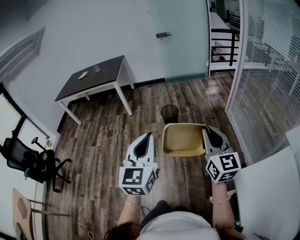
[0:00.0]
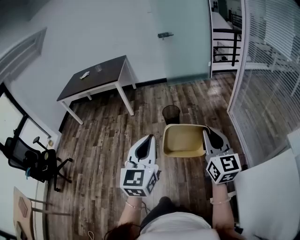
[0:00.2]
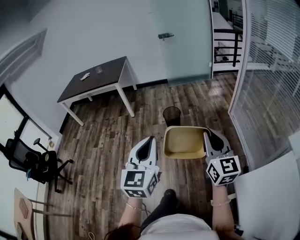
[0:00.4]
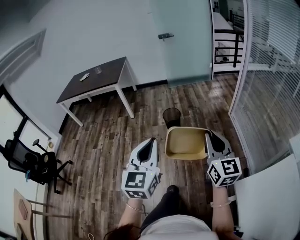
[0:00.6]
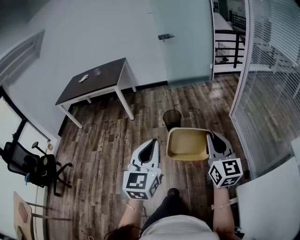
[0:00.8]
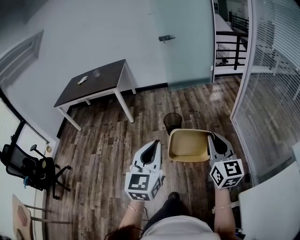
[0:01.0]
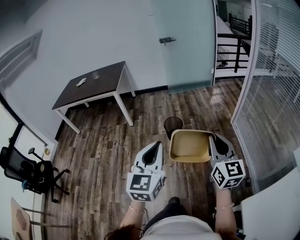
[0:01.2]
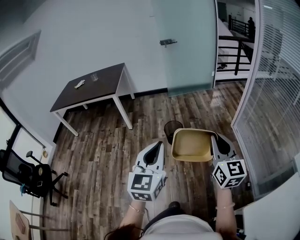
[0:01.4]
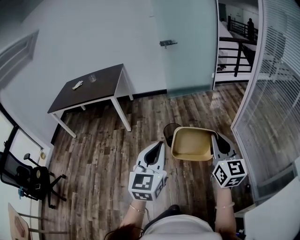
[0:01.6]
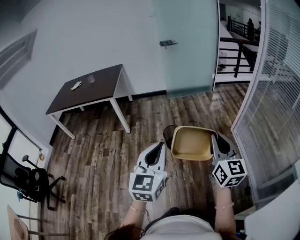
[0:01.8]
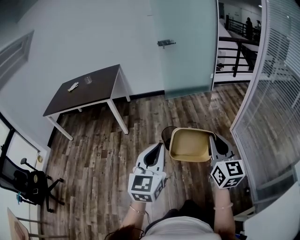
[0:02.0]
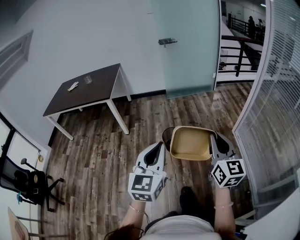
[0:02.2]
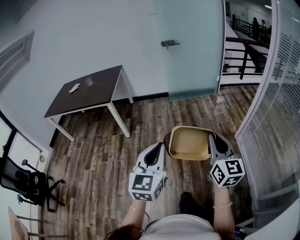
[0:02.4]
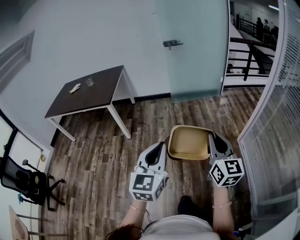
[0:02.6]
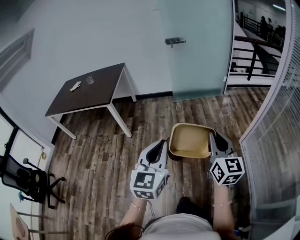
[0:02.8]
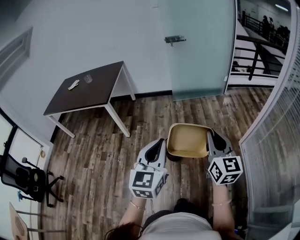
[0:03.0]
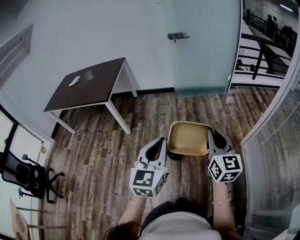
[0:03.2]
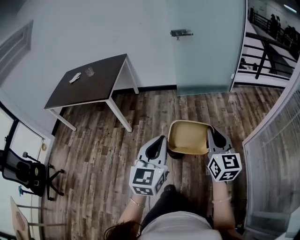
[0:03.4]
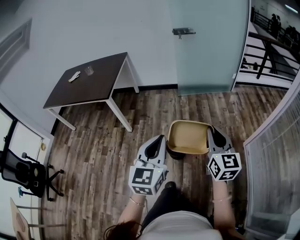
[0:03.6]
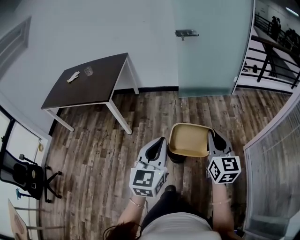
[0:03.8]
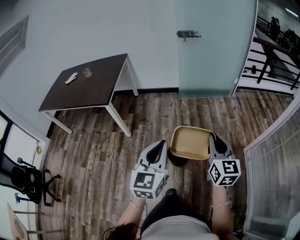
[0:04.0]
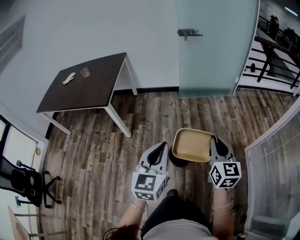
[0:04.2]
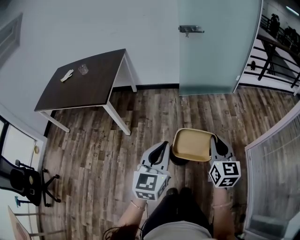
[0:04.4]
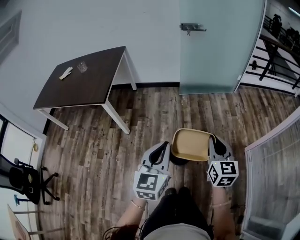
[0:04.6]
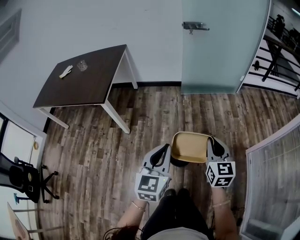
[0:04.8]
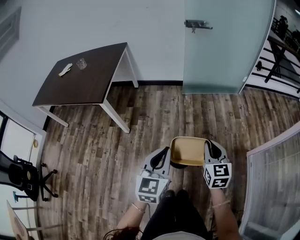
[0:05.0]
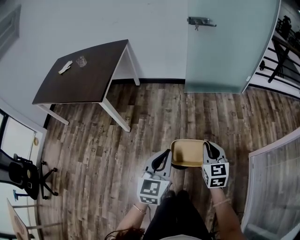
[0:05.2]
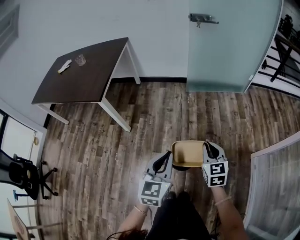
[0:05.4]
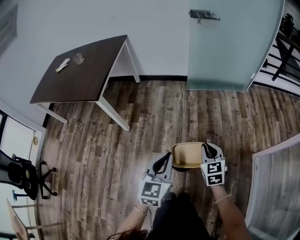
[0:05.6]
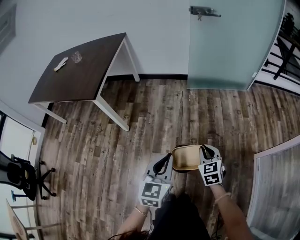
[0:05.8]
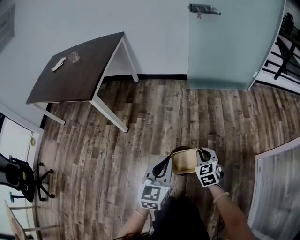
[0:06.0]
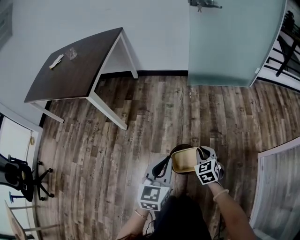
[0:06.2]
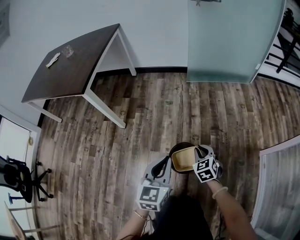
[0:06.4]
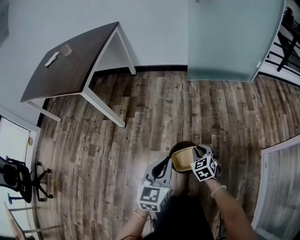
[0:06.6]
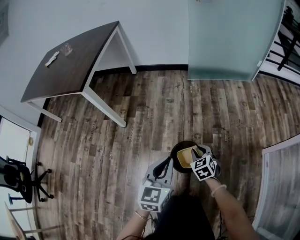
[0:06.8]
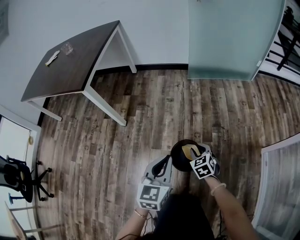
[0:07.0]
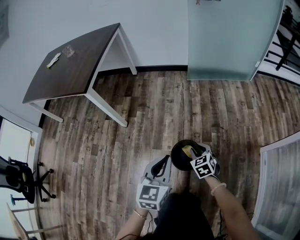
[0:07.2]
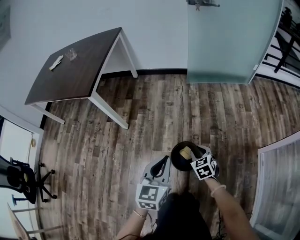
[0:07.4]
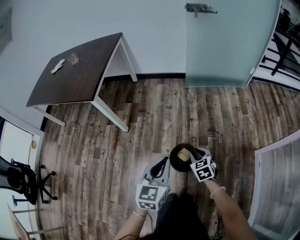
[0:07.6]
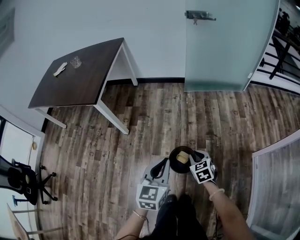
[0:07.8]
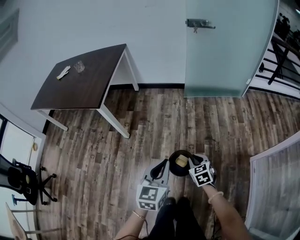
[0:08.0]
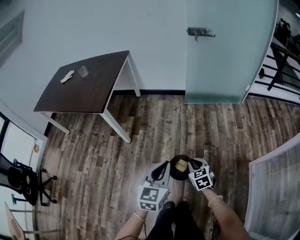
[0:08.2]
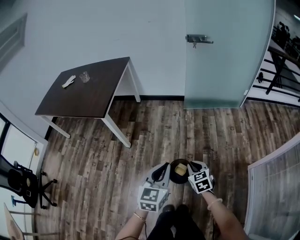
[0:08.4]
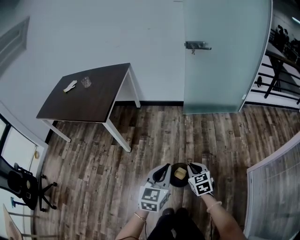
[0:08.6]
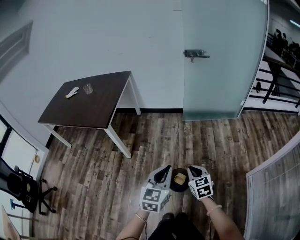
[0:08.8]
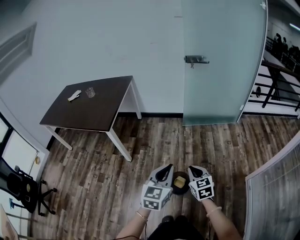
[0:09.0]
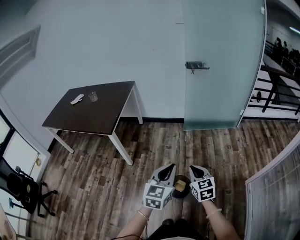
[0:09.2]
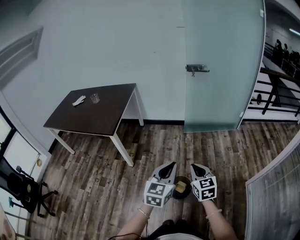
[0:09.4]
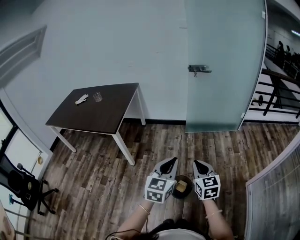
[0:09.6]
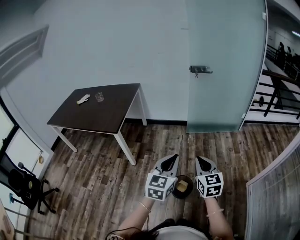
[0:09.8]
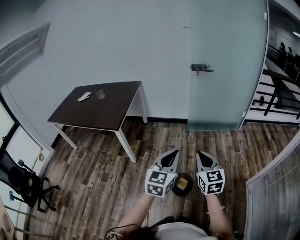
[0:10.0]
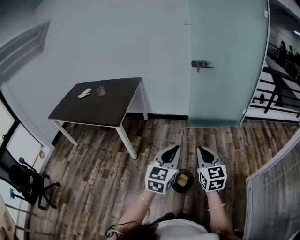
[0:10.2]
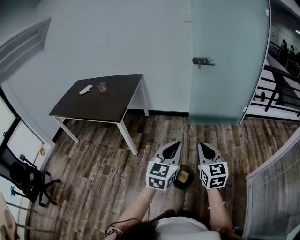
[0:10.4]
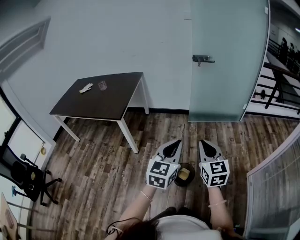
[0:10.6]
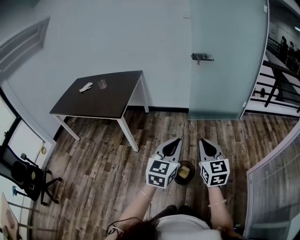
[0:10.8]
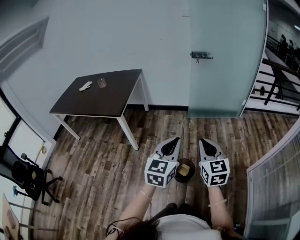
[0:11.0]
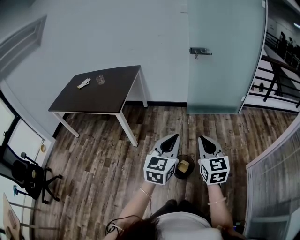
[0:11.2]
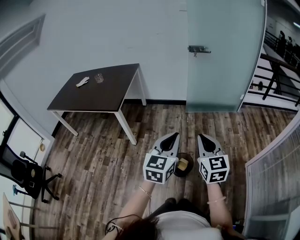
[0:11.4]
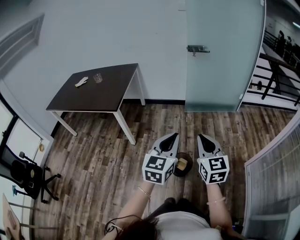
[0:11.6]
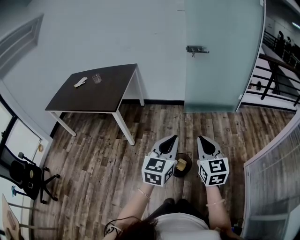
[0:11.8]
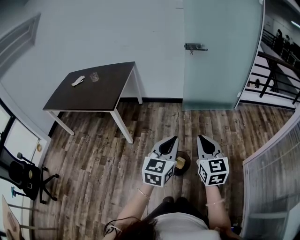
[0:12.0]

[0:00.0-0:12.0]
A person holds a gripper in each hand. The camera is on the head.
0:00.0 to 0:01.6: The grippers both shift forward by about 30 cm.
0:01.6 to 0:03.0: Both grippers are carried forward, approximately 40 cm.
0:03.0 to 0:04.4: The grippers both shift forward and to the left by roughly 30 cm.
0:04.4 to 0:06.0: Both grippers travel together downward and forward, approximately 40 cm. The right gripper turns by some 40 degrees.
0:06.0 to 0:07.6: The right gripper goes downward and returns, some 15 cm each way. Meanwhile the left gripper travels downward and back again, some 15 cm each way.
0:07.6 to 0:09.0: Both grippers travel together upward, about 25 cm. The right gripper closes its fingers.
0:09.0 to 0:10.4: The left gripper goes roughly 10 cm upward and backward. Meanwhile the right gripper is displaced upward and backward by some 20 cm, and rotates roughly 20 degrees.
0:10.4 to 0:12.0: The right gripper changes place by approximately 5 cm.

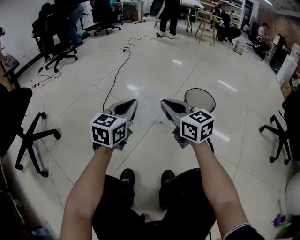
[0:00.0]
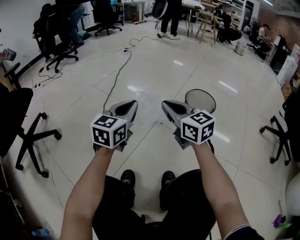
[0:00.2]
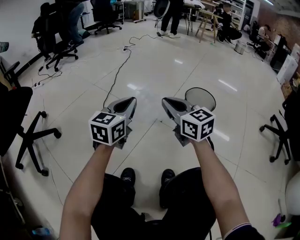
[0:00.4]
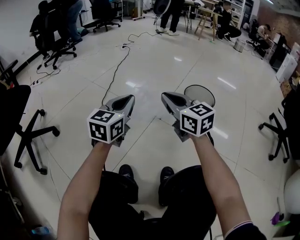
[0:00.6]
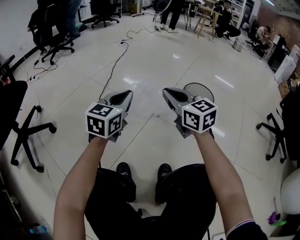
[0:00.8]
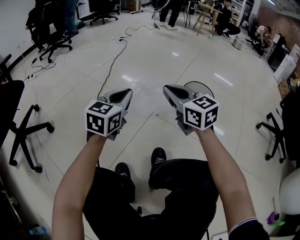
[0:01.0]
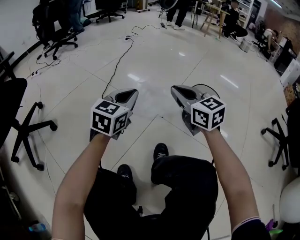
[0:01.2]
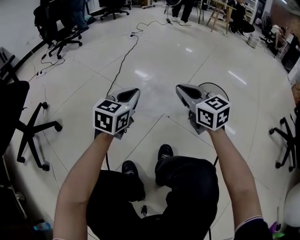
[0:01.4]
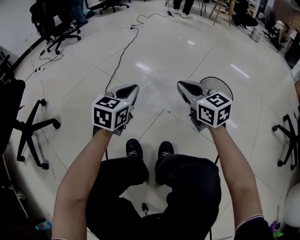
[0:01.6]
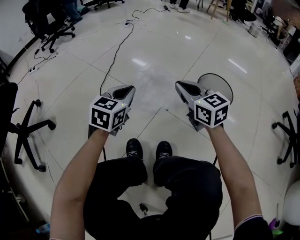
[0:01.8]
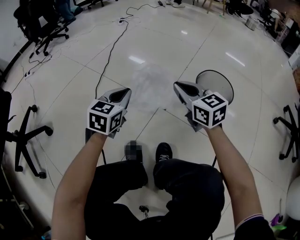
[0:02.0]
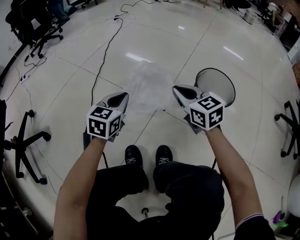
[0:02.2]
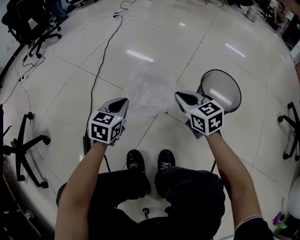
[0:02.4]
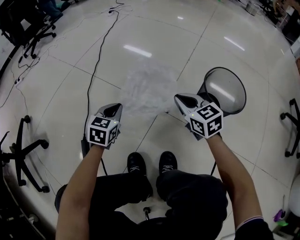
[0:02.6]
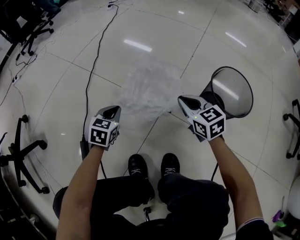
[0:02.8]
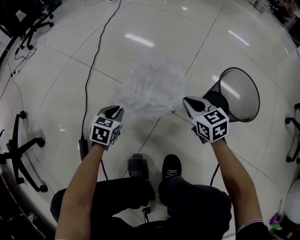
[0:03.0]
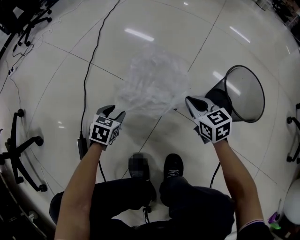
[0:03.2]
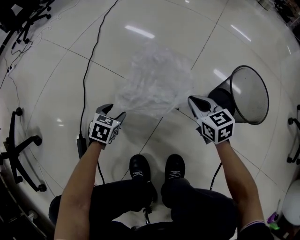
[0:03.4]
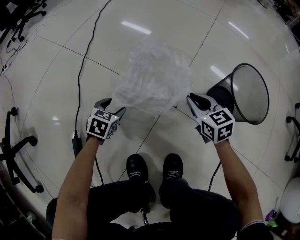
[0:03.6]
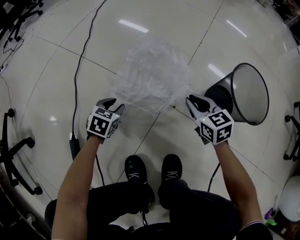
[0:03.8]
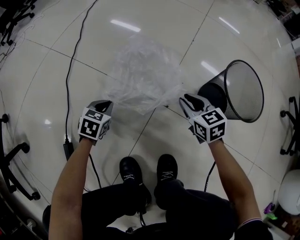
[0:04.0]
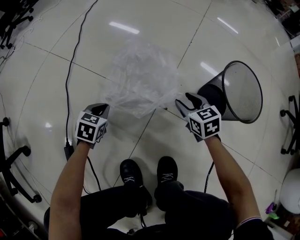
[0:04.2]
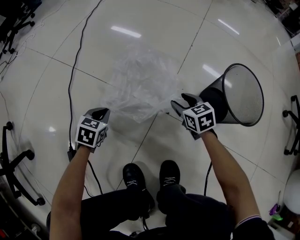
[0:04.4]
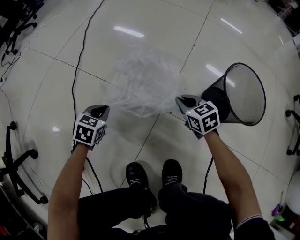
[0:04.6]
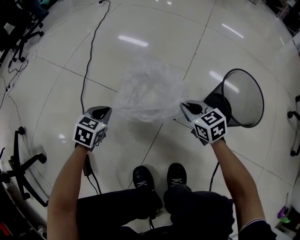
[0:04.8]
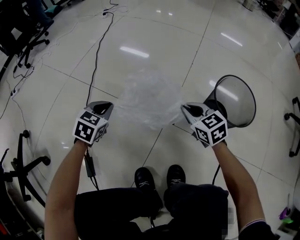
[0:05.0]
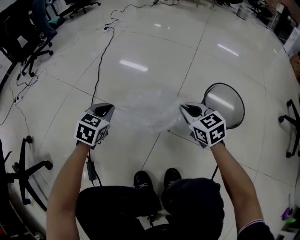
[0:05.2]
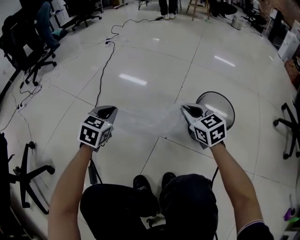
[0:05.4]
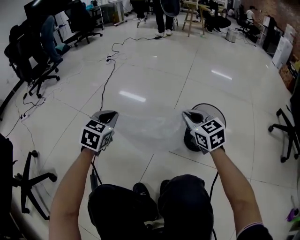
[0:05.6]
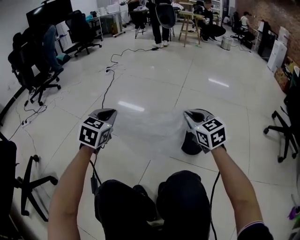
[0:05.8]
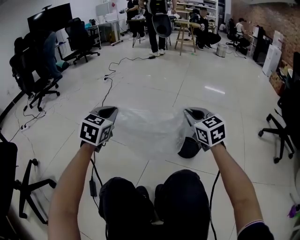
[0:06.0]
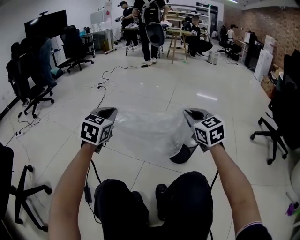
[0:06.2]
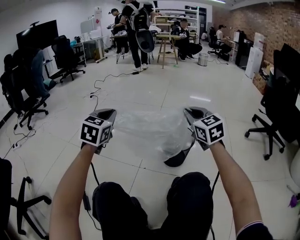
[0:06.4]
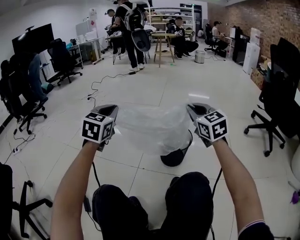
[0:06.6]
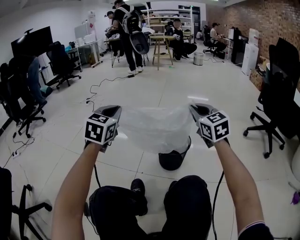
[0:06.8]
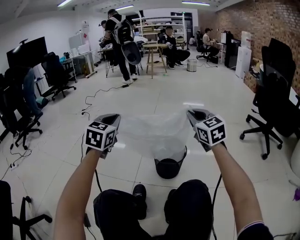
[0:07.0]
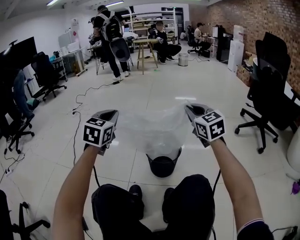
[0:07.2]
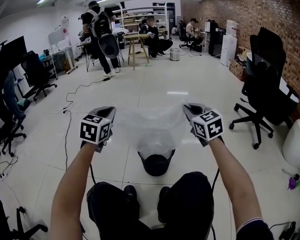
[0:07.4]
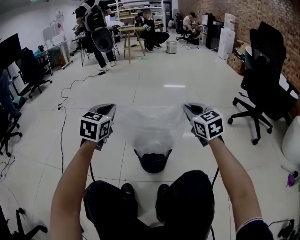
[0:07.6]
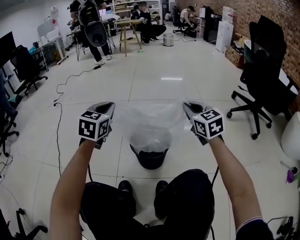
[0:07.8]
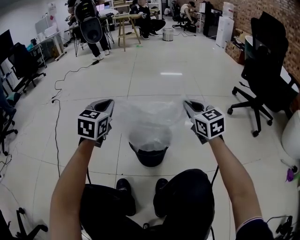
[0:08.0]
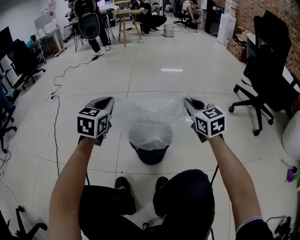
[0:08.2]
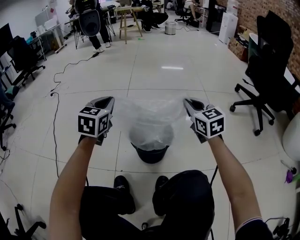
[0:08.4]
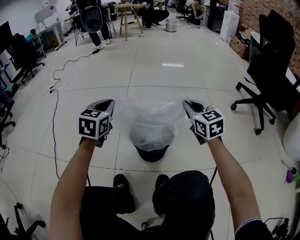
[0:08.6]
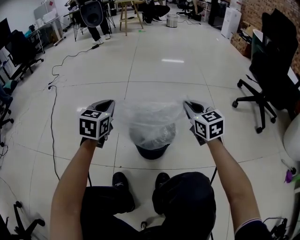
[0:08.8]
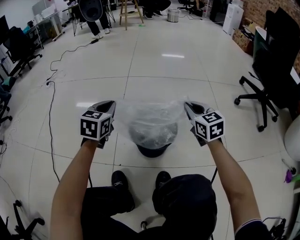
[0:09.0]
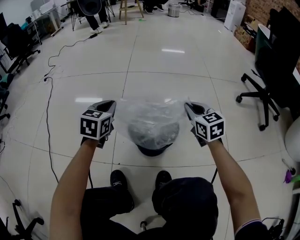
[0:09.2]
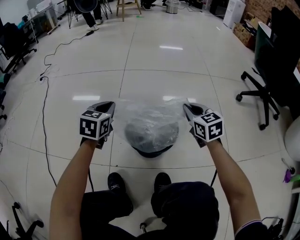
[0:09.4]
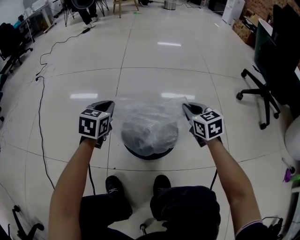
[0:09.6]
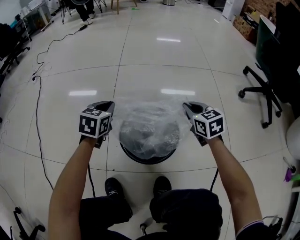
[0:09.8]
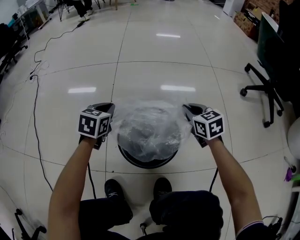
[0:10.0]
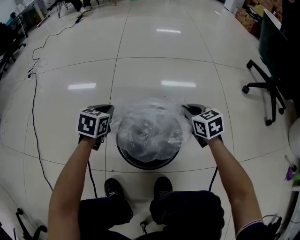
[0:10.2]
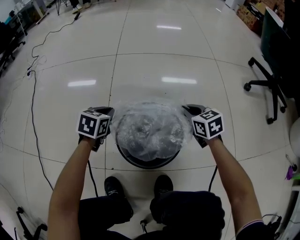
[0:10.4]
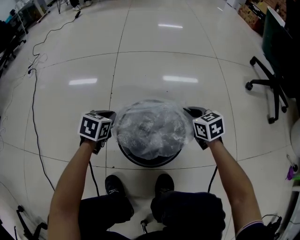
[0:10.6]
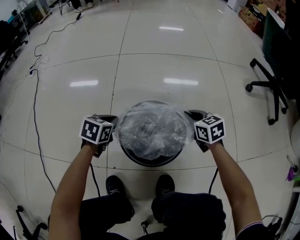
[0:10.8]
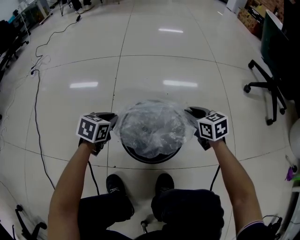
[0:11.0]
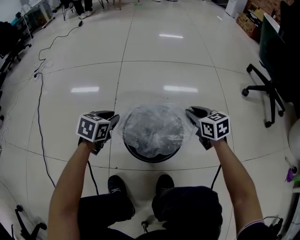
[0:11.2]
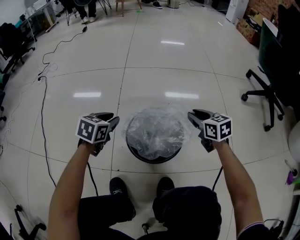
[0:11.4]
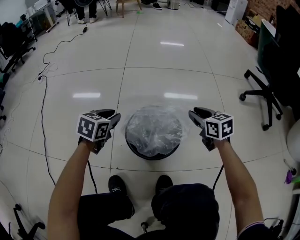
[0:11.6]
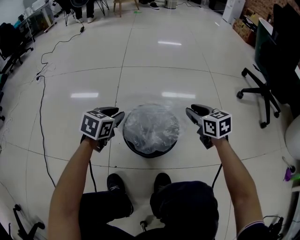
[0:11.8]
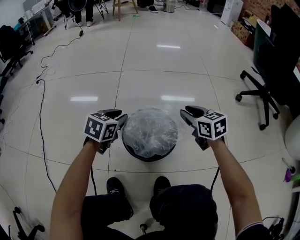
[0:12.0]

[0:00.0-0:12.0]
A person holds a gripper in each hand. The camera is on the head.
0:00.0 to 0:01.6: The left gripper heads forward and downward, covering about 10 cm. Meanwhile the right gripper goes some 10 cm forward.
0:01.6 to 0:03.0: The grippers both shift downward and forward by about 30 cm. The right gripper turns by roughly 20 degrees; the left gripper turns by about 30 degrees.
0:03.0 to 0:04.4: The left gripper shifts some 5 cm downward, and opens, then closes once more; the right gripper moves downward, about 10 cm, and opens up.
0:04.4 to 0:06.0: Both grippers travel together upward, about 40 cm. The right gripper turns by roughly 40 degrees, and closes its fingers, while the left gripper tips its fingers upward by approximately 30 degrees.
0:06.0 to 0:07.6: The left gripper heads to the right and forward, covering about 30 cm; the right gripper moves to the right, some 25 cm, and rotates roughly 20 degrees.
0:07.6 to 0:09.0: The two grippers go roughly 15 cm downward.
0:09.0 to 0:10.4: The two grippers go some 20 cm downward. The left gripper turns by about 20 degrees; the right gripper changes its angle by roughly 20 degrees.
0:10.4 to 0:12.0: The two grippers go approximately 10 cm upward. The left gripper opens. Meanwhile the right gripper opens up.
